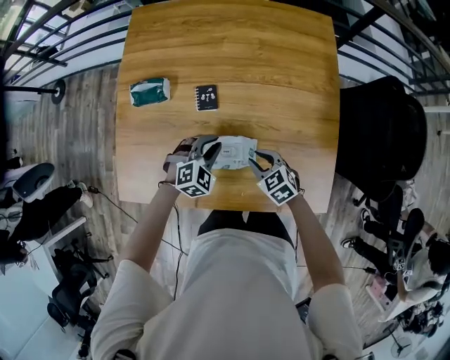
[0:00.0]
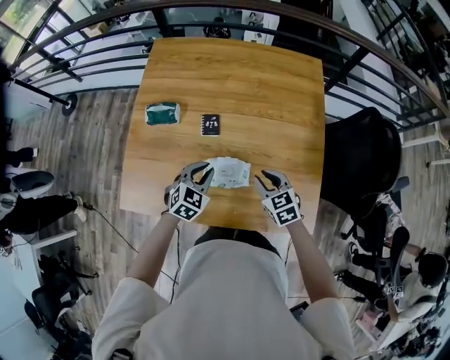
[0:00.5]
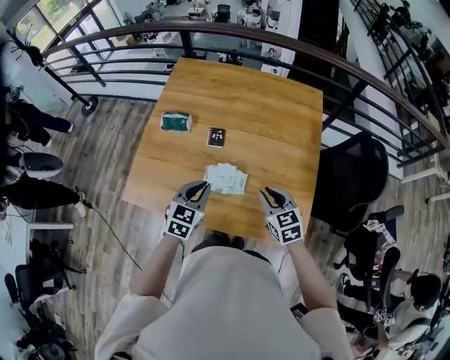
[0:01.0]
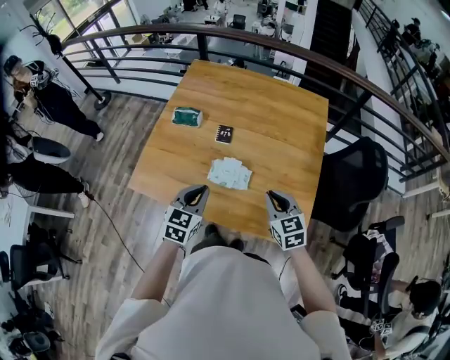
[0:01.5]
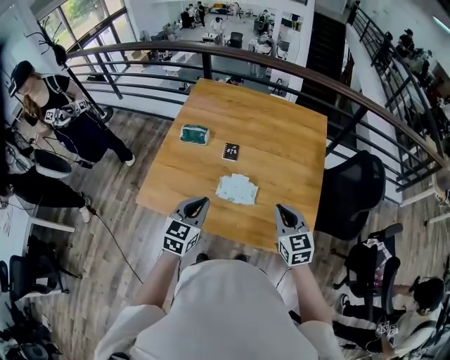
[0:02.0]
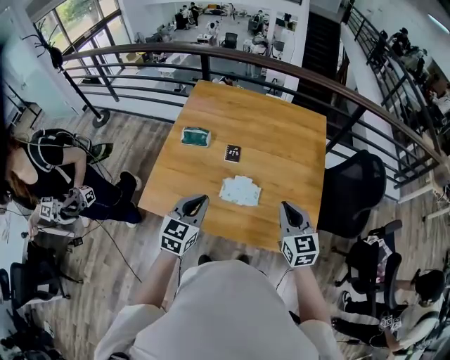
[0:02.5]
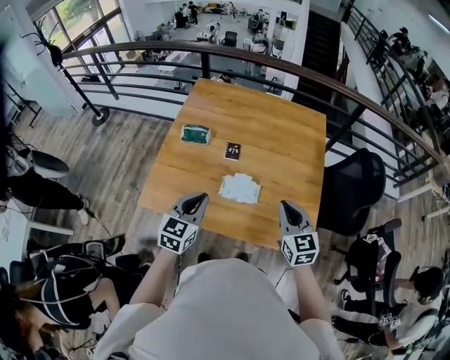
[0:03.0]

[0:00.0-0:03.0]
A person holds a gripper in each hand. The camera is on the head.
0:00.0 to 0:01.5: The left gripper moves backward and upward, roughly 25 cm, and rotates around the line of its fingers by approximately 50 degrees, counterclockwise from behind. Meanwhile the right gripper shifts approximately 25 cm upward and backward, and rotates about 20 degrees.
0:01.5 to 0:03.0: The right gripper goes roughly 10 cm upward. Meanwhile the left gripper shifts about 10 cm to the left and upward.

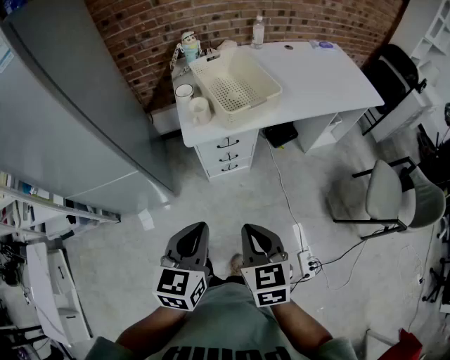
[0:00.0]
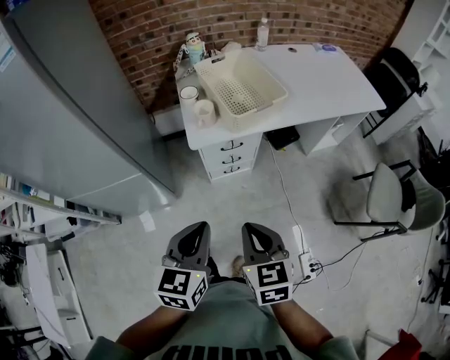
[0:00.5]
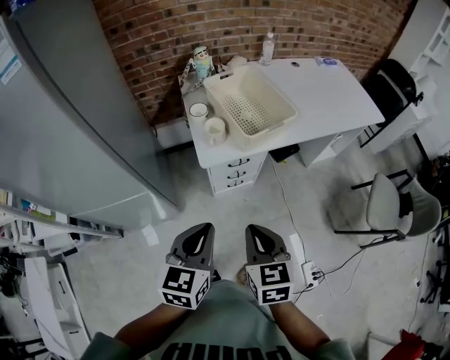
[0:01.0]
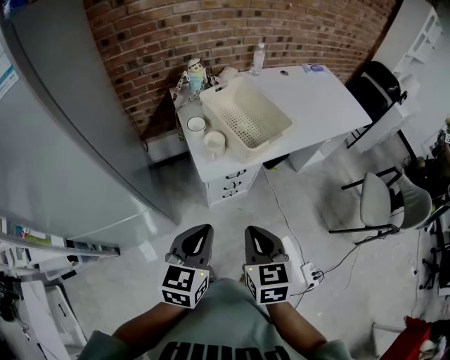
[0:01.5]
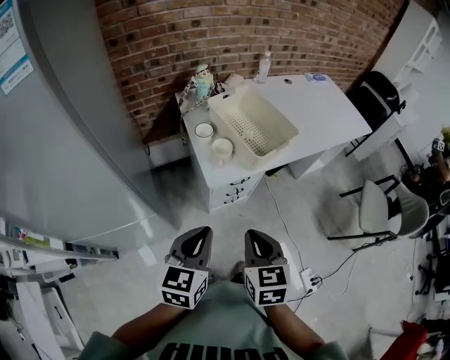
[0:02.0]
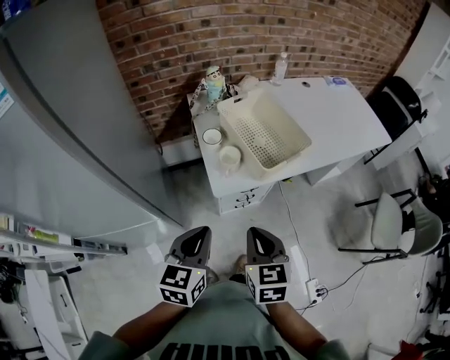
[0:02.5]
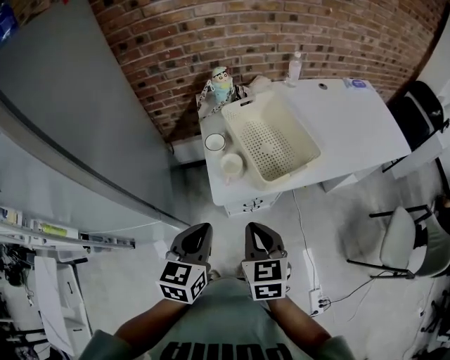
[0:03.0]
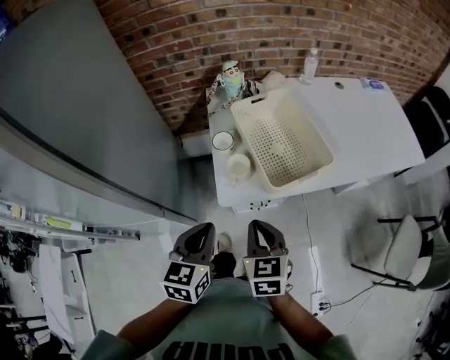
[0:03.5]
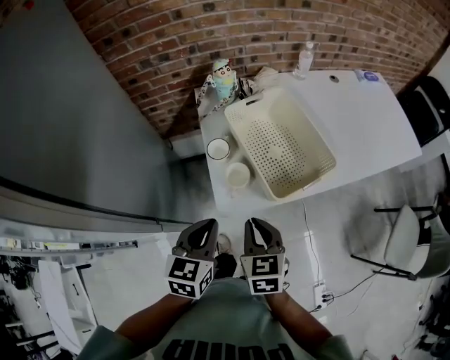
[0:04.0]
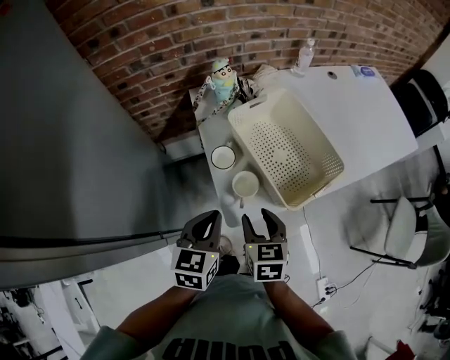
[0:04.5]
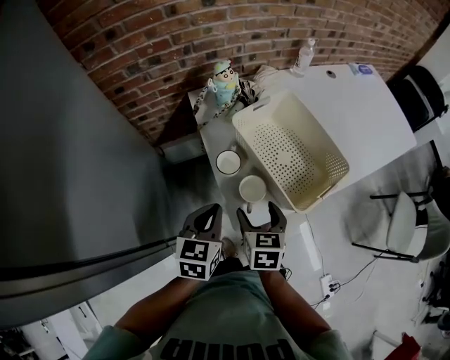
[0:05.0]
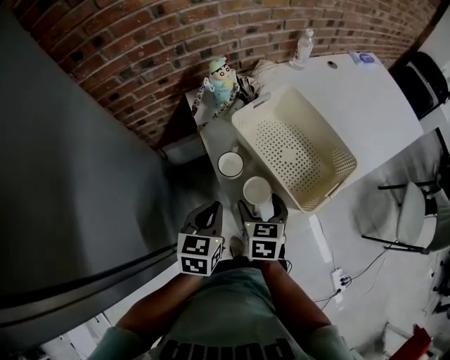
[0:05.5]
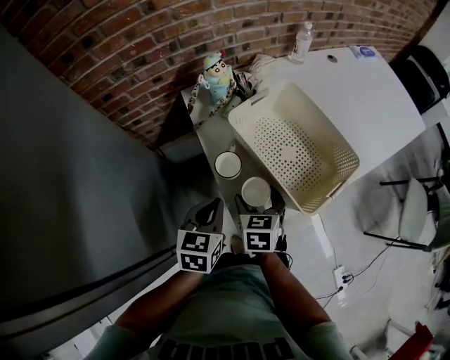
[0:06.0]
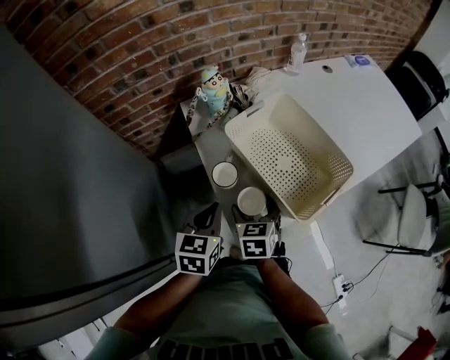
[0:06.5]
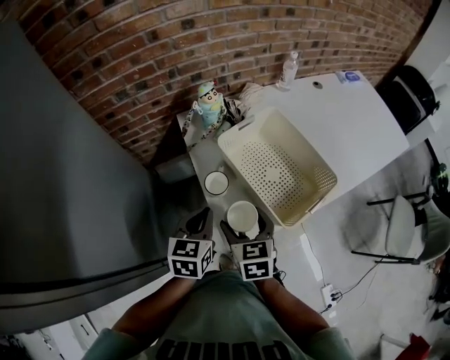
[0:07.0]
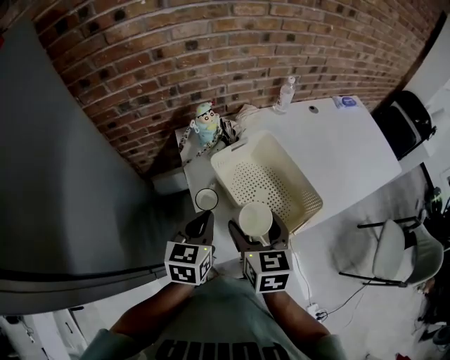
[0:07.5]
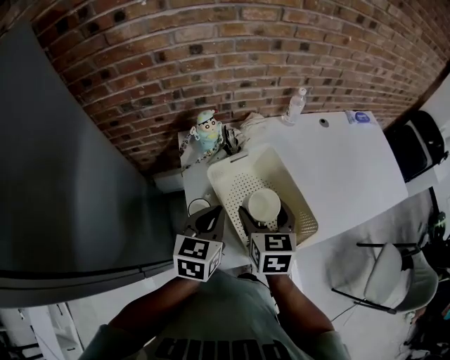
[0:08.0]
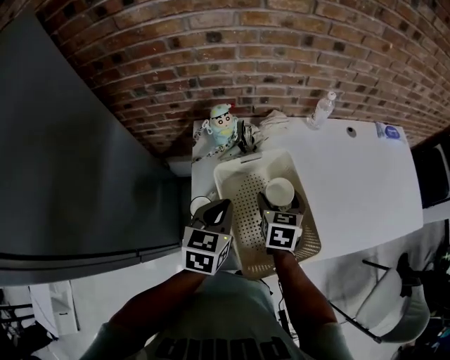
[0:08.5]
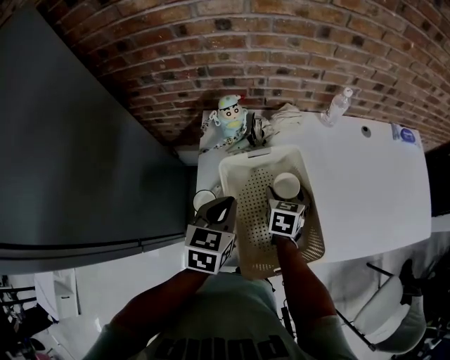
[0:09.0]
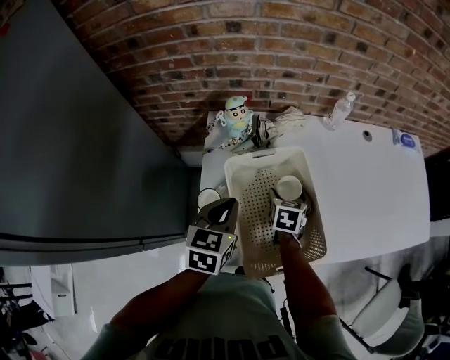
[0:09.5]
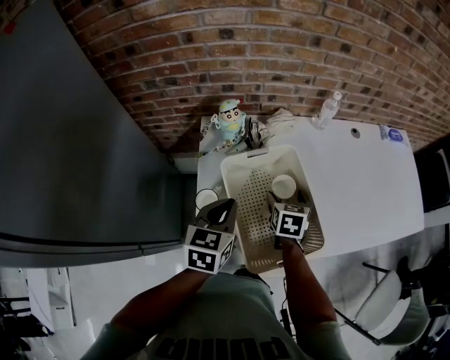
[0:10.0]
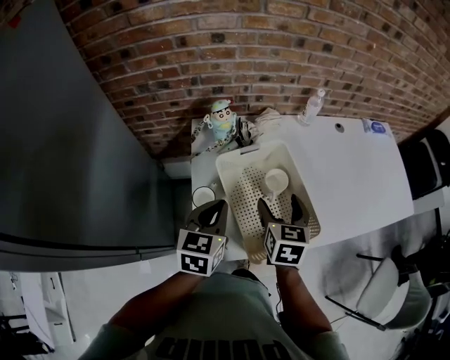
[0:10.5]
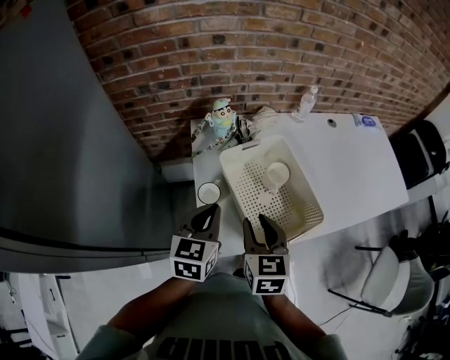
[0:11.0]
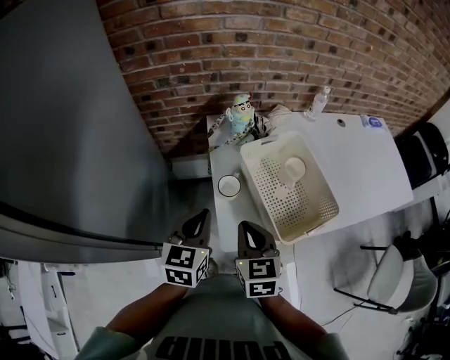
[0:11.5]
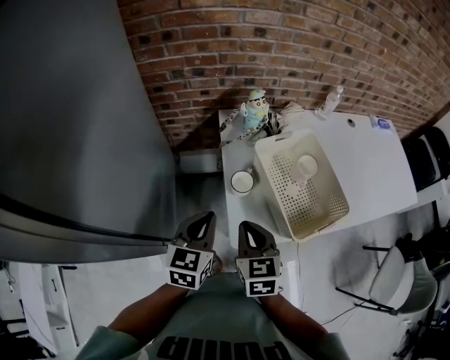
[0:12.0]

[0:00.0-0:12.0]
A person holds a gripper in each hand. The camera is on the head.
0:00.0 to 0:02.0: Both grippers move to the left and forward, roughly 20 cm.
0:02.0 to 0:04.0: The grippers both shift forward by roughly 20 cm.
0:04.0 to 0:06.0: The grippers both shift forward, downward and to the left by roughly 20 cm. The right gripper opens its fingers.
0:06.0 to 0:08.0: The left gripper is displaced upward, forward and to the right by about 15 cm, while the right gripper goes some 20 cm upward, to the right and forward.
0:08.0 to 0:10.0: The right gripper travels downward, forward and to the right by approximately 15 cm.
0:10.0 to 0:12.0: The left gripper heads to the left and backward, covering about 20 cm, while the right gripper moves backward, to the left and upward, some 35 cm, and closes up.

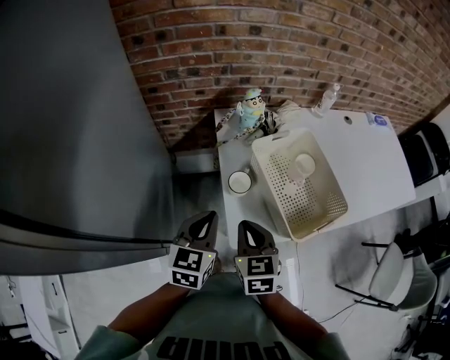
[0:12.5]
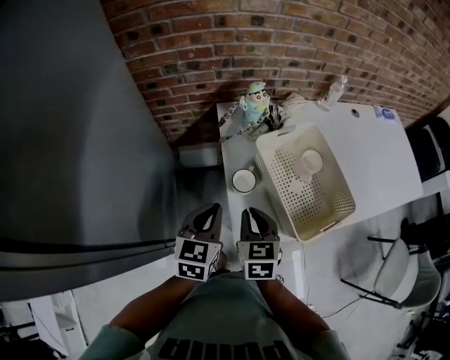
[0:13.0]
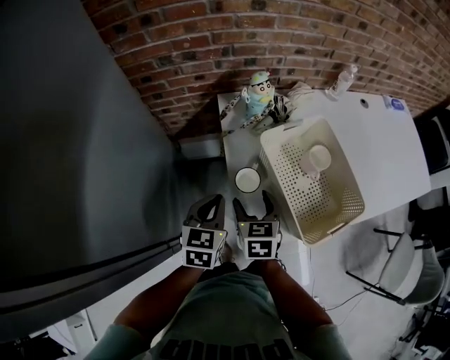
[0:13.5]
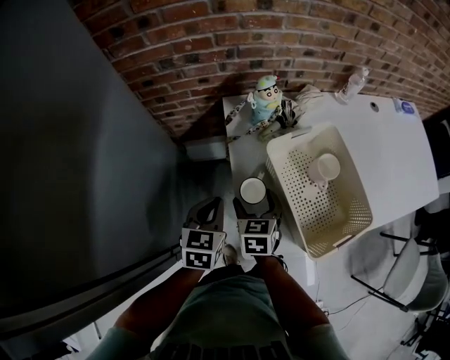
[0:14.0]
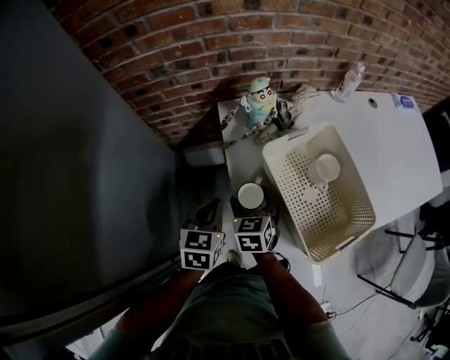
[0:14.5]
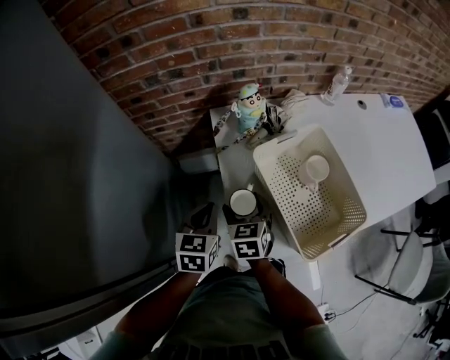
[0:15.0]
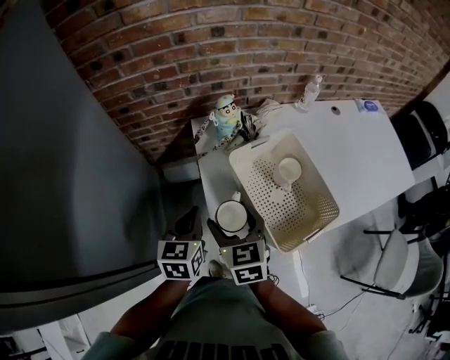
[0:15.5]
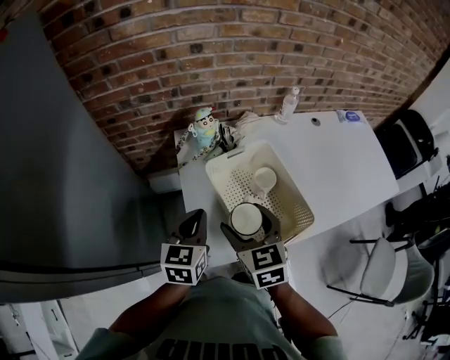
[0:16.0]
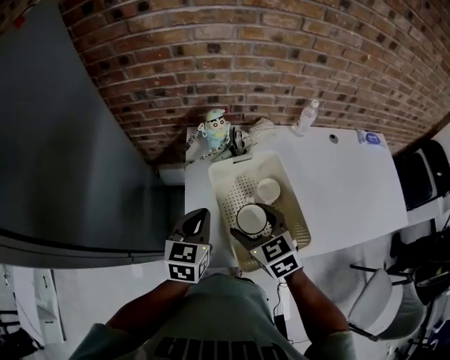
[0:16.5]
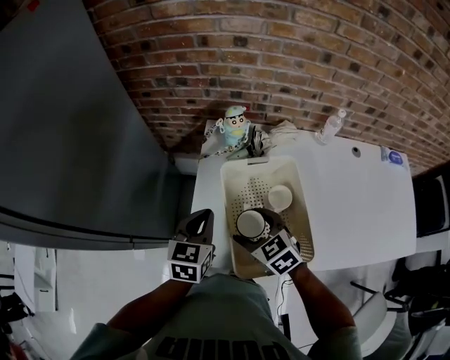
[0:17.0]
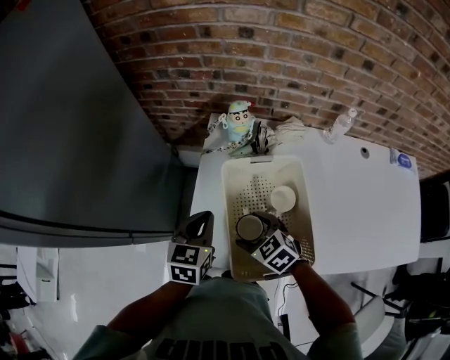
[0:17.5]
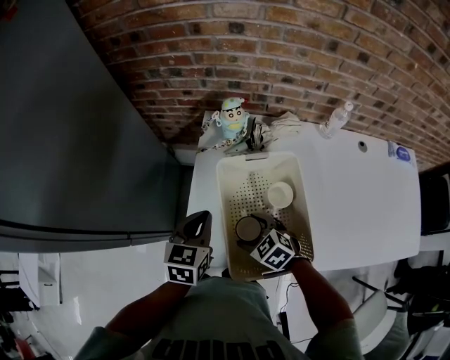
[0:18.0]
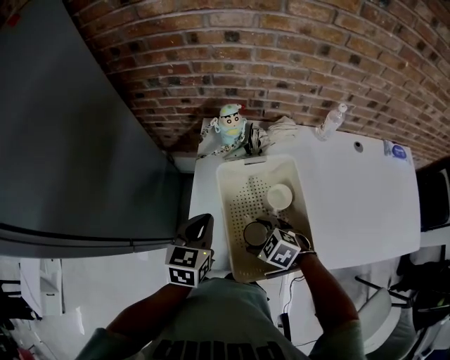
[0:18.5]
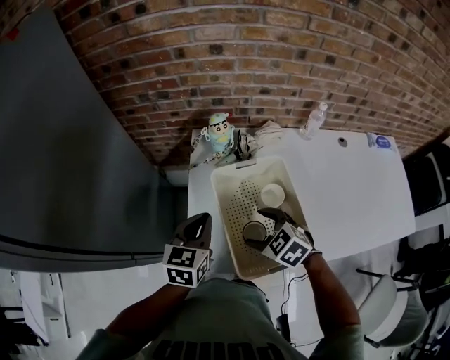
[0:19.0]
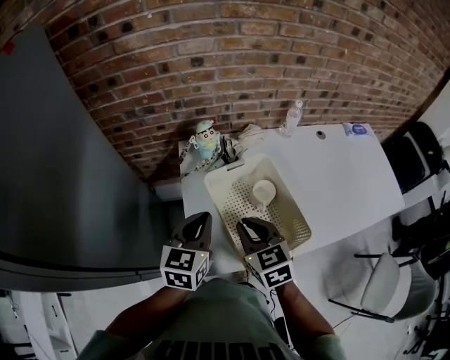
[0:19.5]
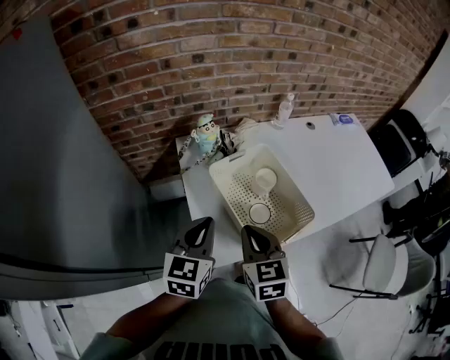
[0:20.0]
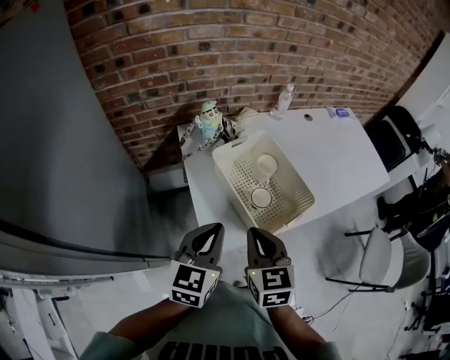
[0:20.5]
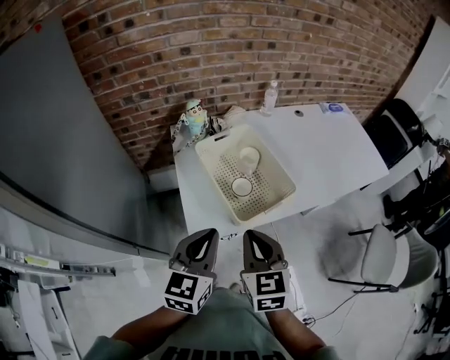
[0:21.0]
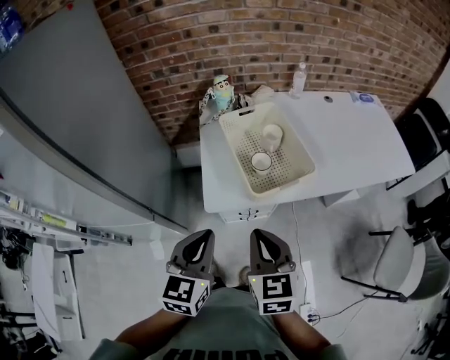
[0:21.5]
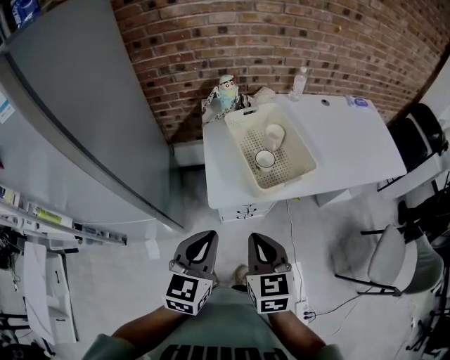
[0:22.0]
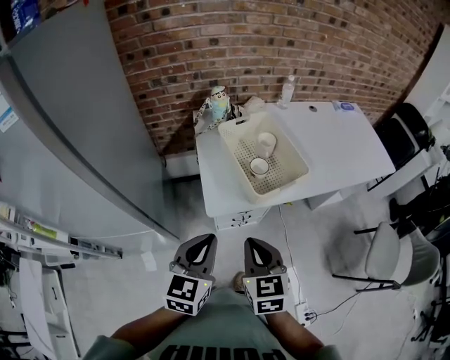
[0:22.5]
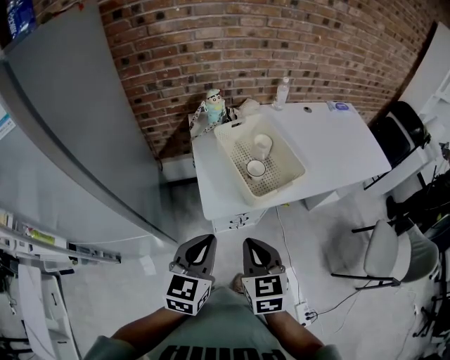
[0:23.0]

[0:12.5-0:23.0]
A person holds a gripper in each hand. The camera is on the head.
0:12.5 to 0:14.5: Both grippers travel together forward and downward, roughly 20 cm. The right gripper opens up.
0:14.5 to 0:16.5: The left gripper heads to the right and upward, covering approximately 15 cm. Meanwhile the right gripper heads upward, to the right and backward, covering roughly 25 cm, and changes its angle by roughly 30 degrees.
0:16.5 to 0:19.0: The right gripper shifts roughly 5 cm downward, and rotates some 30 degrees.
0:19.0 to 0:21.0: The right gripper changes place by roughly 25 cm, rotates roughly 60 degrees, and closes. Meanwhile the left gripper shifts by about 25 cm, and swivels some 20 degrees.
0:21.0 to 0:23.0: Both grippers move backward, some 10 cm.

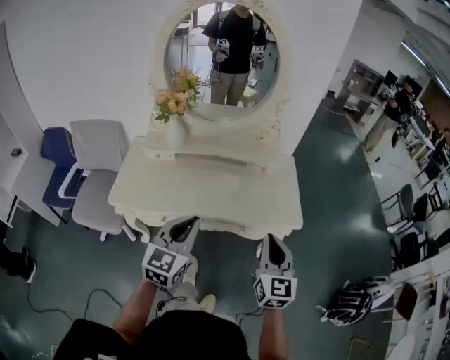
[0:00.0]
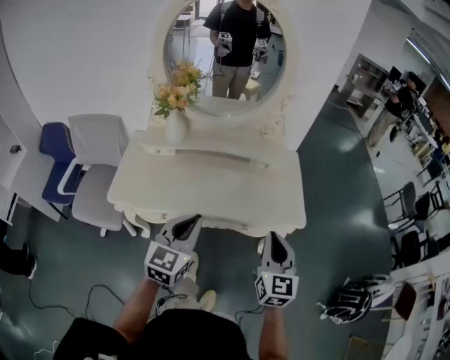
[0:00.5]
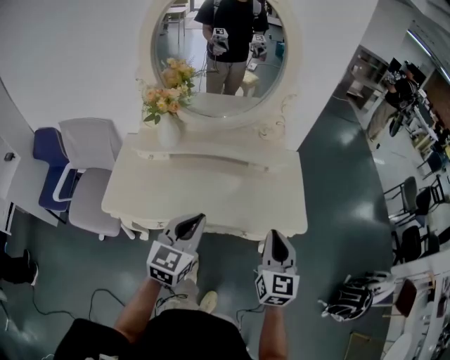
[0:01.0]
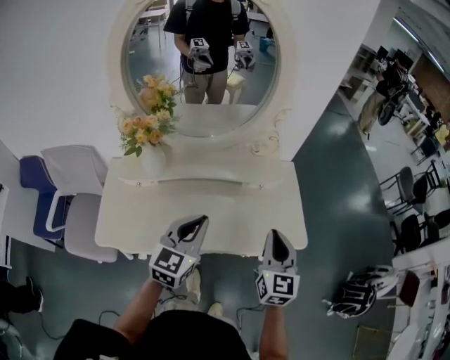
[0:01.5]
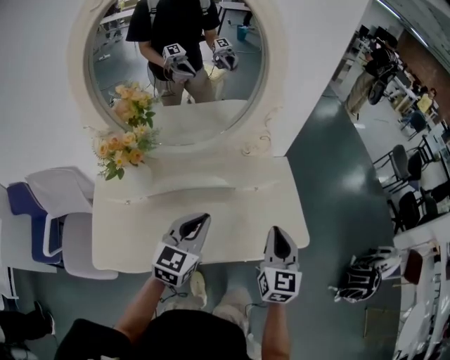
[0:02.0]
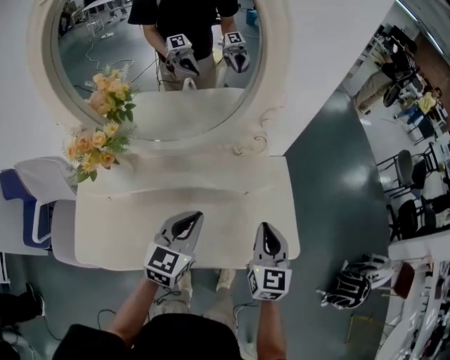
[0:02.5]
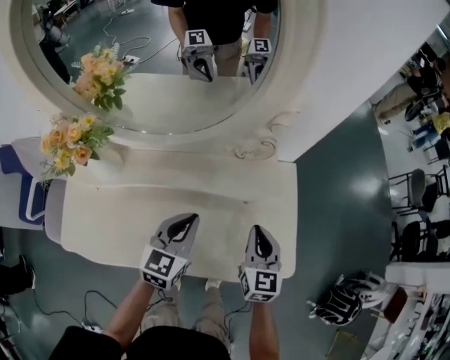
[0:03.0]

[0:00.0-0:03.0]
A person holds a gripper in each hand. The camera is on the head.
0:00.0 to 0:01.5: Both grippers move forward, about 20 cm.
0:01.5 to 0:03.0: Both grippers travel together forward and downward, some 20 cm.
